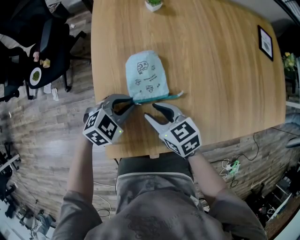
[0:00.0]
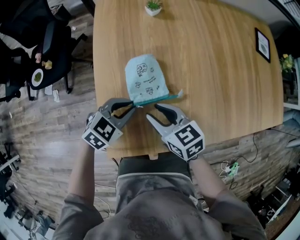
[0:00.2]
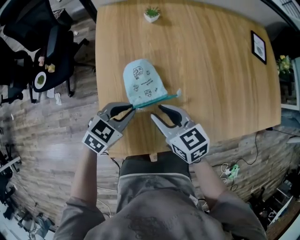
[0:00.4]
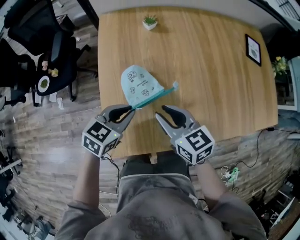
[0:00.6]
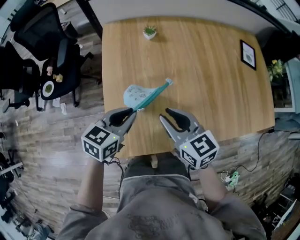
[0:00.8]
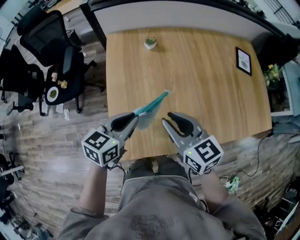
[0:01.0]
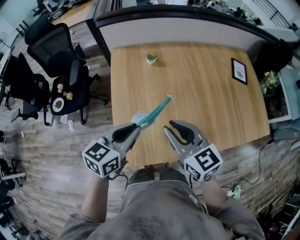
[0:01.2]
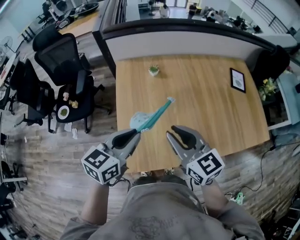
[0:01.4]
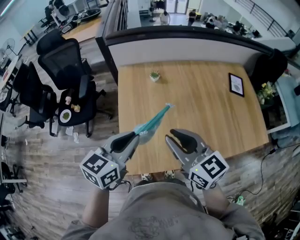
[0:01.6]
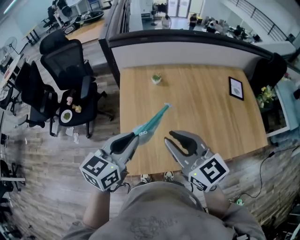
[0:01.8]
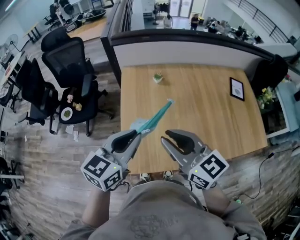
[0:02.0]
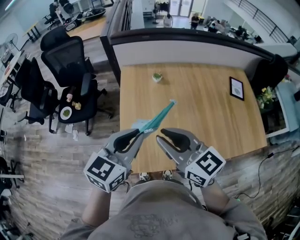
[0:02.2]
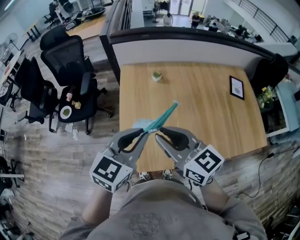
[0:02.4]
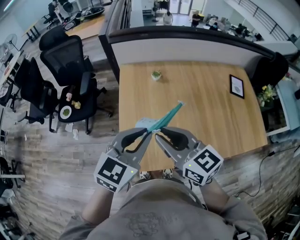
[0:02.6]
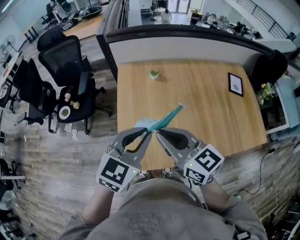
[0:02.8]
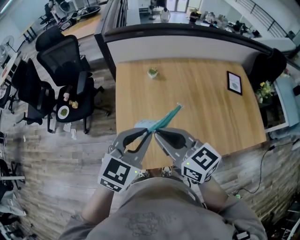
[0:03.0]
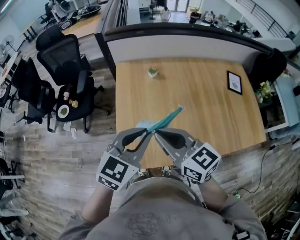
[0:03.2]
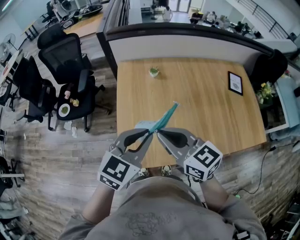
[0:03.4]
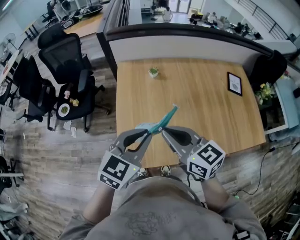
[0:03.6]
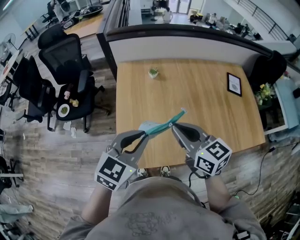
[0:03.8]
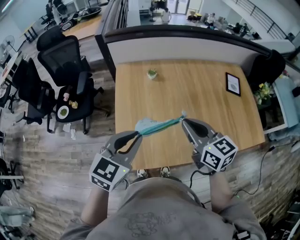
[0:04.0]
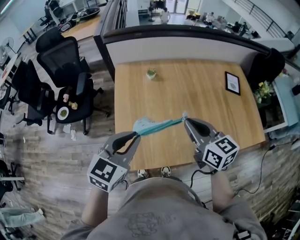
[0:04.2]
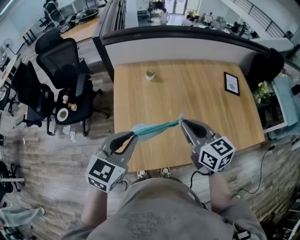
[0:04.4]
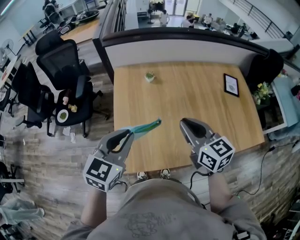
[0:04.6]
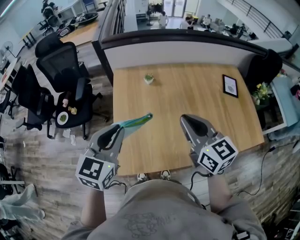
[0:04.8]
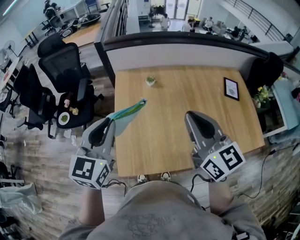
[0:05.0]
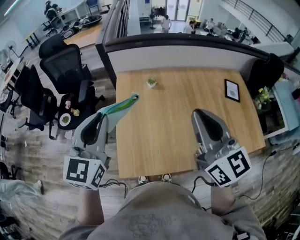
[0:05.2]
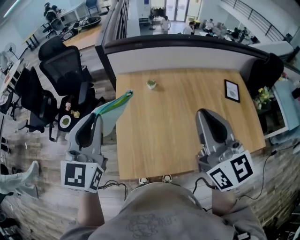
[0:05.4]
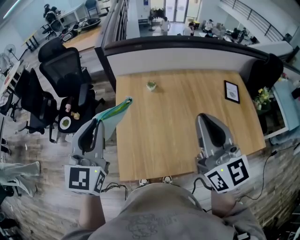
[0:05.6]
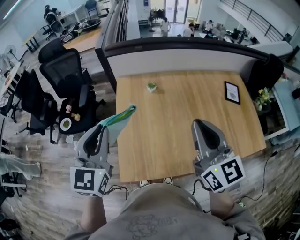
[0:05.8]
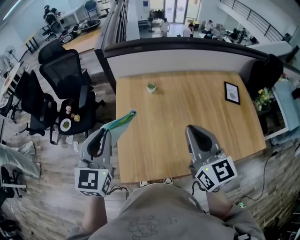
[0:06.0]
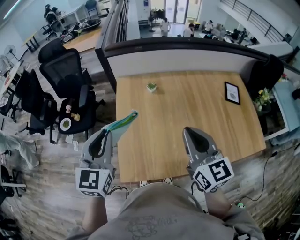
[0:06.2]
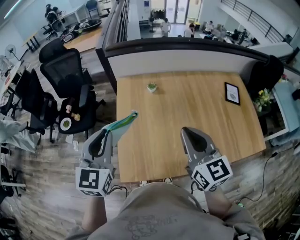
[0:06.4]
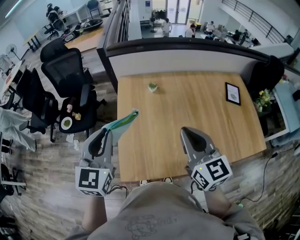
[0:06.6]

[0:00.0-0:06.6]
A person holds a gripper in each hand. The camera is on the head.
0:00.0 to 0:01.6: Both grippers travel together upward, roughly 35 cm. The left gripper angles its fingers upward, by approximately 30 degrees. The right gripper changes its angle by roughly 30 degrees.
0:01.6 to 0:03.2: The left gripper travels to the right by about 5 cm, and rotates approximately 20 degrees.
0:03.2 to 0:05.0: The right gripper travels to the right and upward by approximately 15 cm, and changes its angle by about 20 degrees; the left gripper goes about 10 cm to the left and upward, and turns by about 20 degrees.
0:05.0 to 0:06.6: The right gripper shifts by about 5 cm.

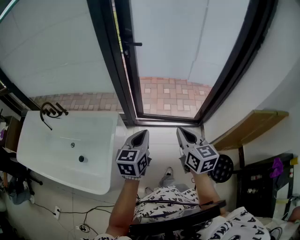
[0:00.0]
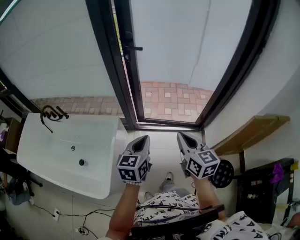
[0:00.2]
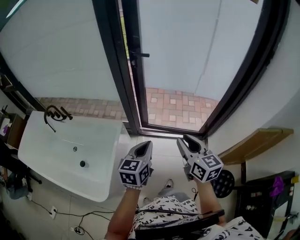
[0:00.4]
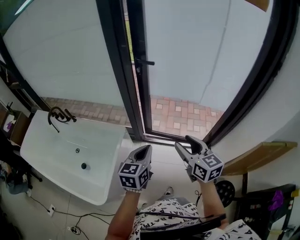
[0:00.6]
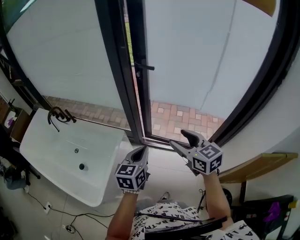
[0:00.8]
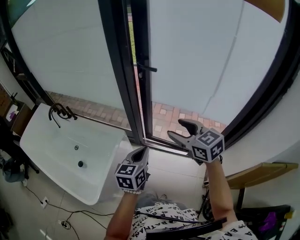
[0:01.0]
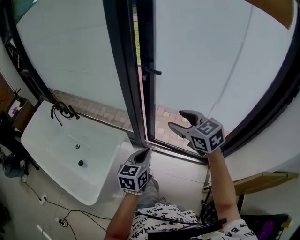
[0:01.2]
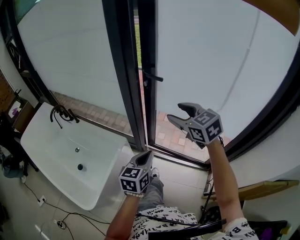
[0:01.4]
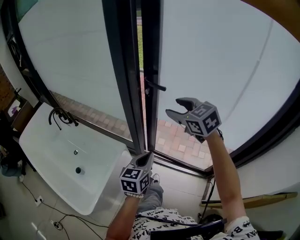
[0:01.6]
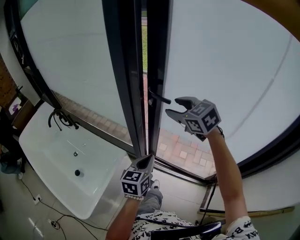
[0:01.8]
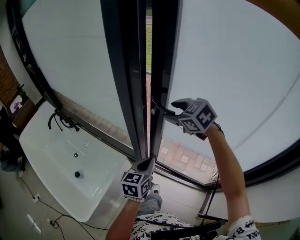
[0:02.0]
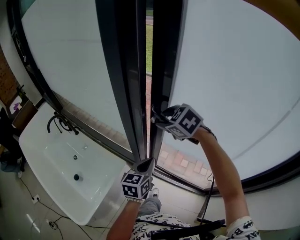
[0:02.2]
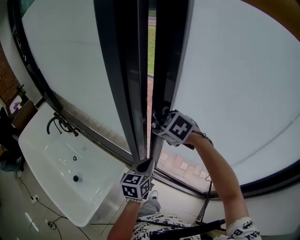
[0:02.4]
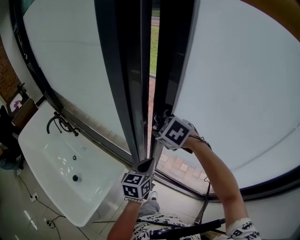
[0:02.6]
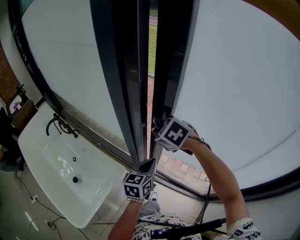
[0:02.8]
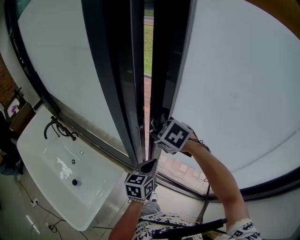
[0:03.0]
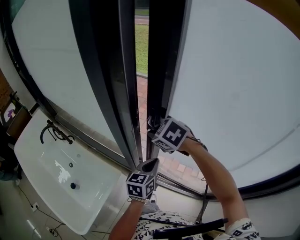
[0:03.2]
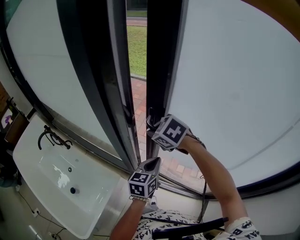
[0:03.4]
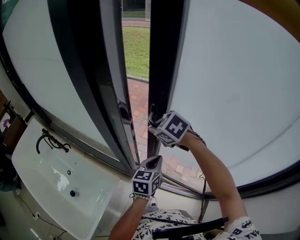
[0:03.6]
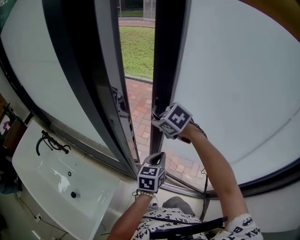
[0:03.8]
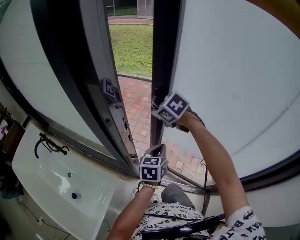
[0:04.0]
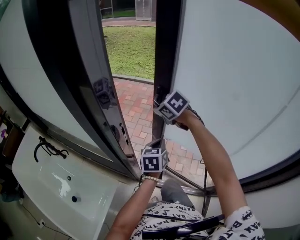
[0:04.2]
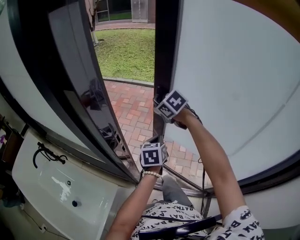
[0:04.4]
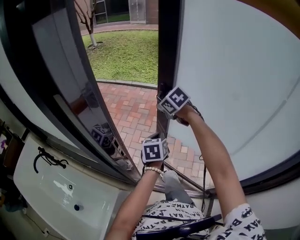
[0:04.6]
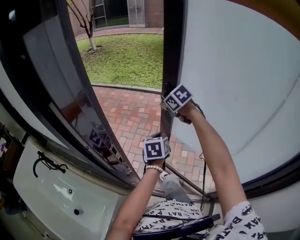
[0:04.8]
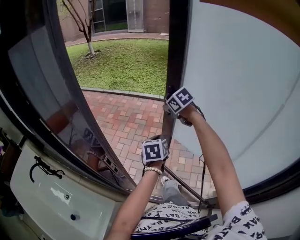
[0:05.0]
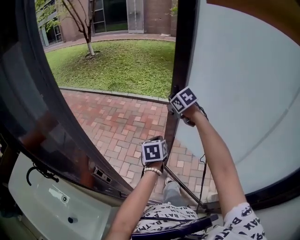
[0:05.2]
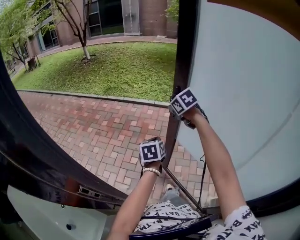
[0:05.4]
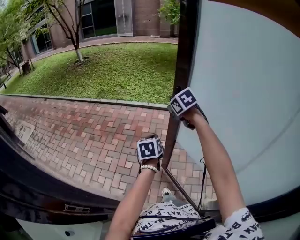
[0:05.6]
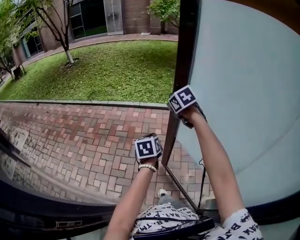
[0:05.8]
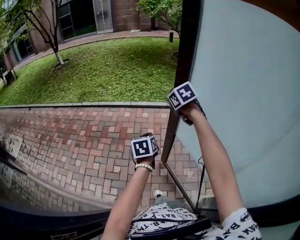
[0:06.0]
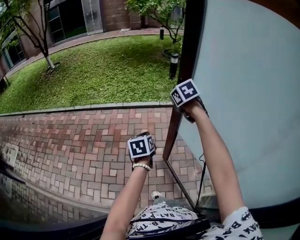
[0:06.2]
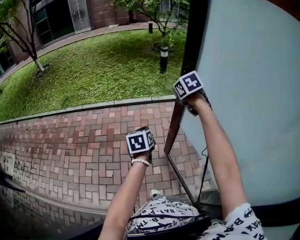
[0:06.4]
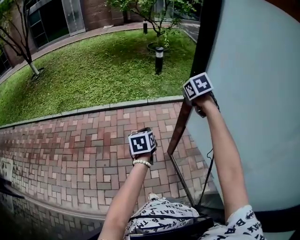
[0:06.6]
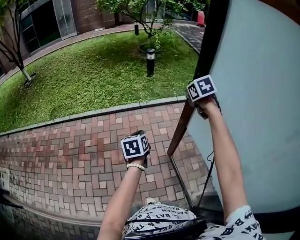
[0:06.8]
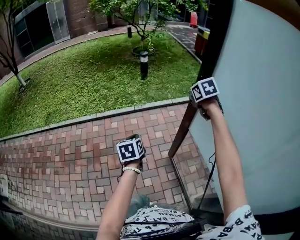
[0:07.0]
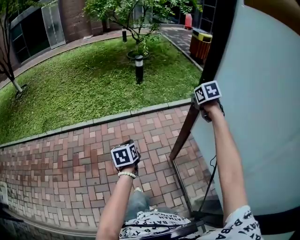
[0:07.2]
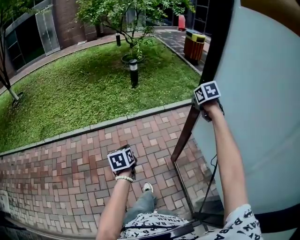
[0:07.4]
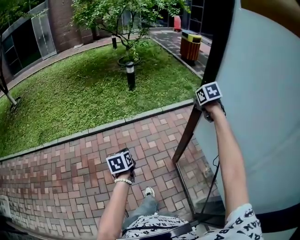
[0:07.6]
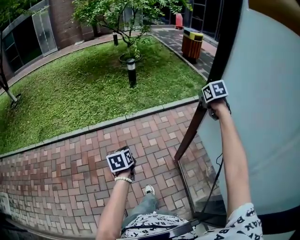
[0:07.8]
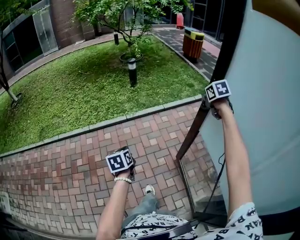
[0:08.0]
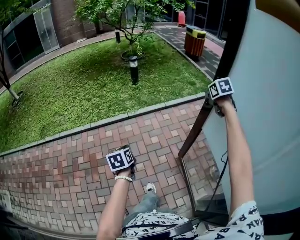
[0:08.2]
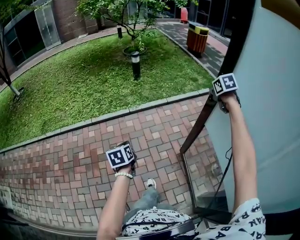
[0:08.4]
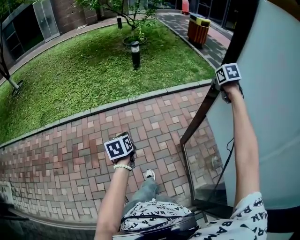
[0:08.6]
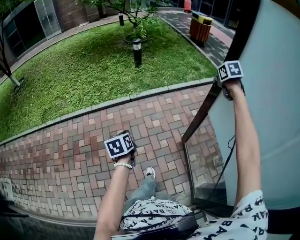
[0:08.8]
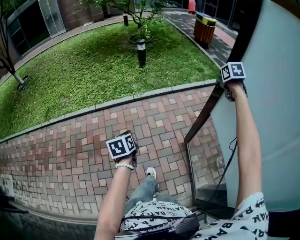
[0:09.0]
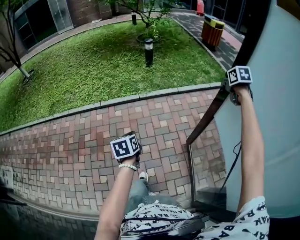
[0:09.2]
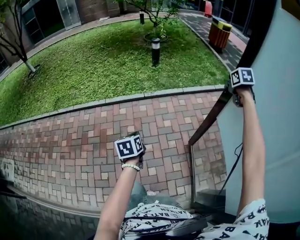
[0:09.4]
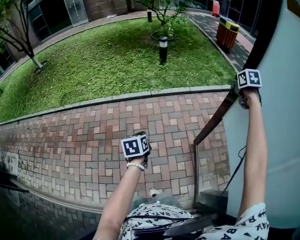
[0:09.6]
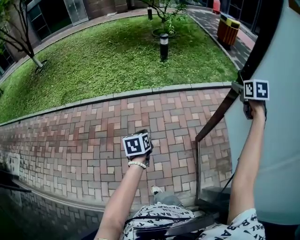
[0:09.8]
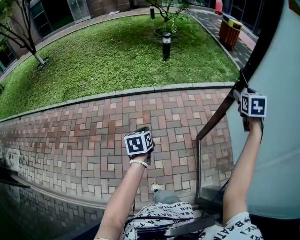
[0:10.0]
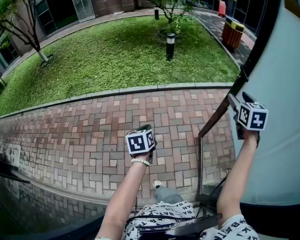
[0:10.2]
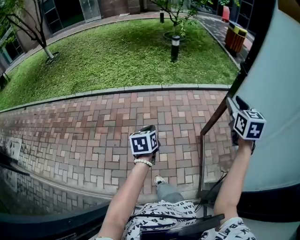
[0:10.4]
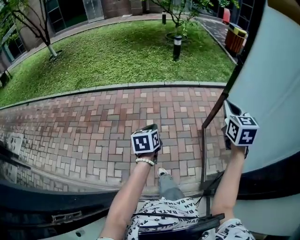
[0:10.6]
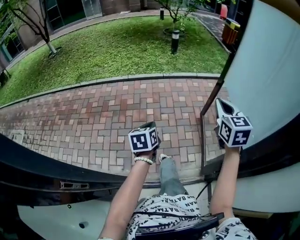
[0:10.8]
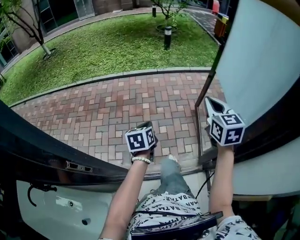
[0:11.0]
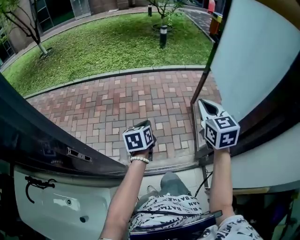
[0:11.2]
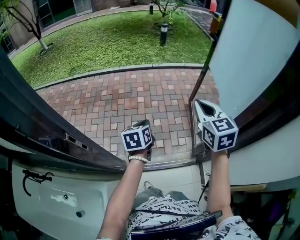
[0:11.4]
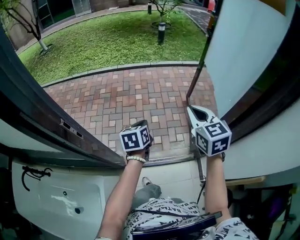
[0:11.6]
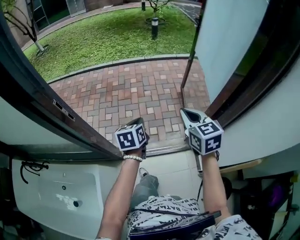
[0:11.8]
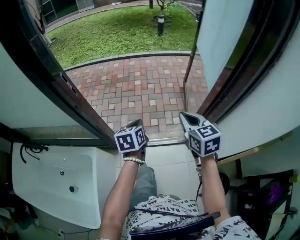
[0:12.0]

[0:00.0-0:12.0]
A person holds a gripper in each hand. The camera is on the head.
0:00.0 to 0:01.6: The right gripper goes approximately 35 cm forward, turns by approximately 50 degrees, and opens its fingers; the left gripper is displaced forward by roughly 20 cm.
0:01.6 to 0:03.0: The left gripper travels forward by roughly 20 cm, while the right gripper moves forward and to the left, roughly 15 cm, changes its angle by approximately 30 degrees, and closes its fingers.
0:03.0 to 0:04.4: Both grippers travel together forward and to the right, roughly 20 cm.
0:04.4 to 0:06.0: The left gripper moves forward and to the right, about 40 cm; the right gripper heads to the right and forward, covering roughly 50 cm, and changes its angle by about 30 degrees.
0:06.0 to 0:07.6: The left gripper changes place by roughly 25 cm. Meanwhile the right gripper moves about 50 cm, and changes its angle by roughly 40 degrees.
0:07.6 to 0:09.0: The right gripper shifts some 10 cm to the right.
0:09.0 to 0:10.4: The left gripper moves backward, approximately 20 cm, while the right gripper moves backward and to the left, about 35 cm, rotates approximately 30 degrees, and opens.
0:10.4 to 0:12.0: Both grippers are carried backward, roughly 60 cm. The right gripper rotates some 20 degrees, and closes.

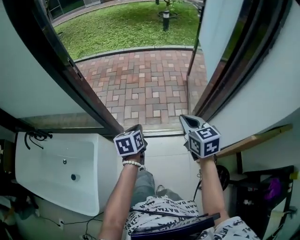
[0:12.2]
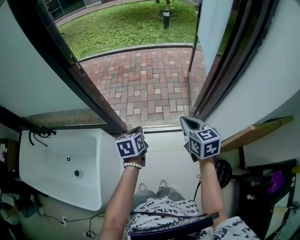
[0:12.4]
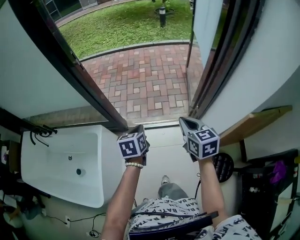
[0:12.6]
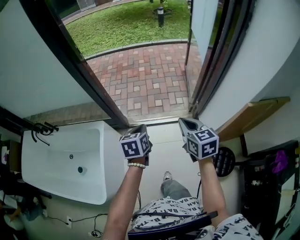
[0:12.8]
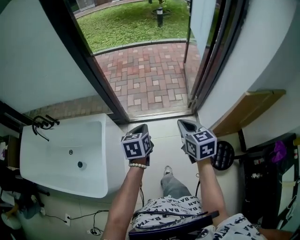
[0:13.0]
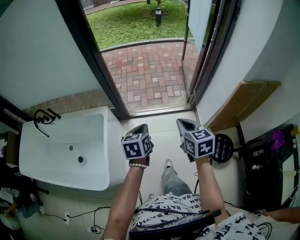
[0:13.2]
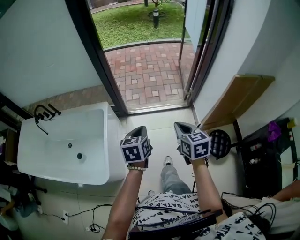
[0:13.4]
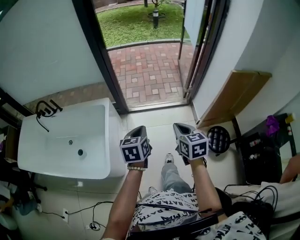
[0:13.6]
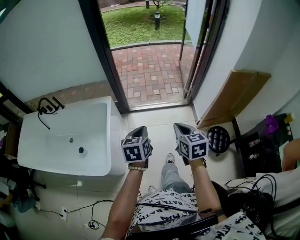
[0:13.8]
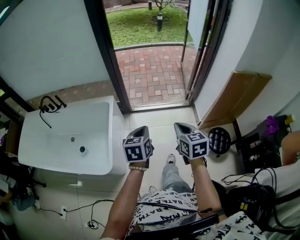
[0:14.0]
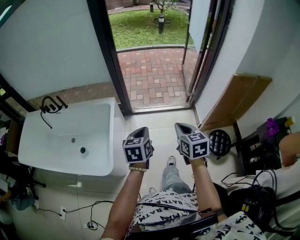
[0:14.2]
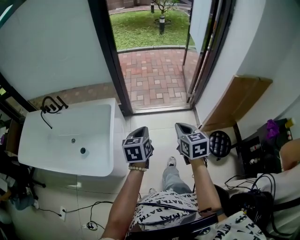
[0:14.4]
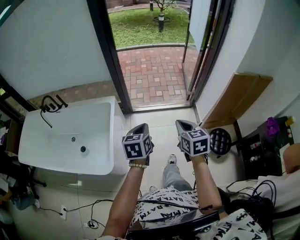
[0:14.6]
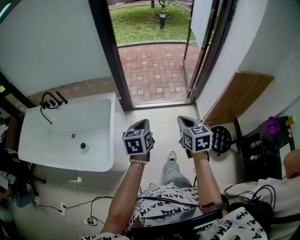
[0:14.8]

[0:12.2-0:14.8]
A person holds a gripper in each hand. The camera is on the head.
0:12.2 to 0:13.4: Both grippers move backward, about 35 cm.
0:13.4 to 0:14.8: Both grippers travel together backward, roughly 5 cm.

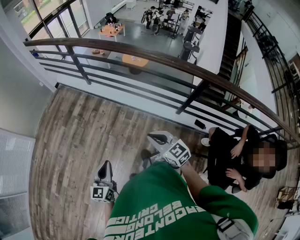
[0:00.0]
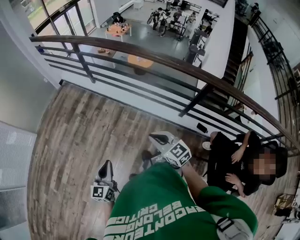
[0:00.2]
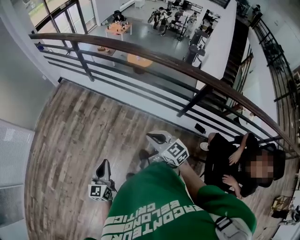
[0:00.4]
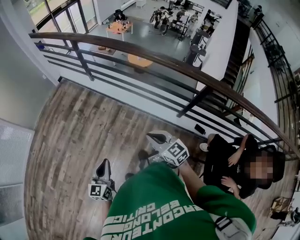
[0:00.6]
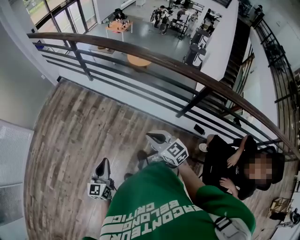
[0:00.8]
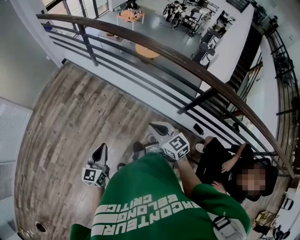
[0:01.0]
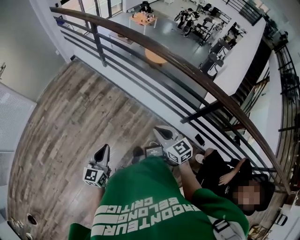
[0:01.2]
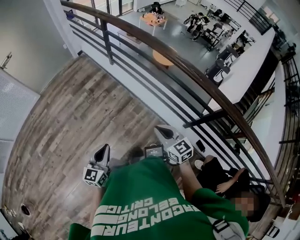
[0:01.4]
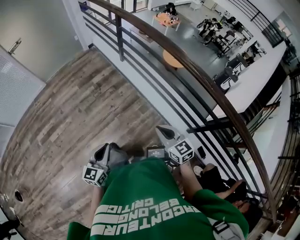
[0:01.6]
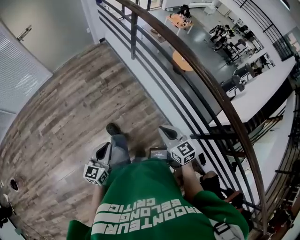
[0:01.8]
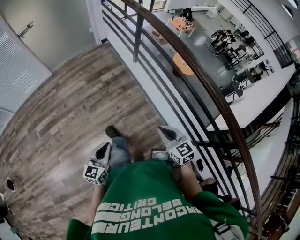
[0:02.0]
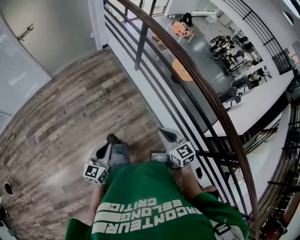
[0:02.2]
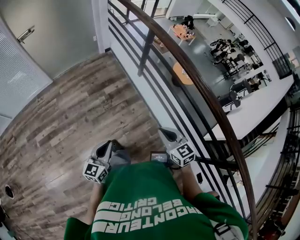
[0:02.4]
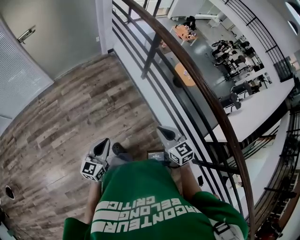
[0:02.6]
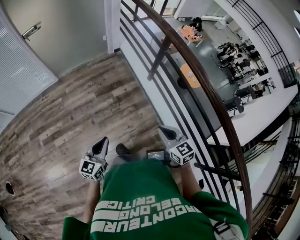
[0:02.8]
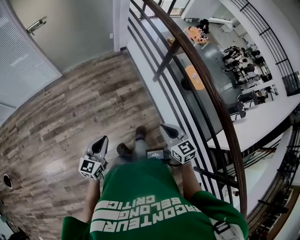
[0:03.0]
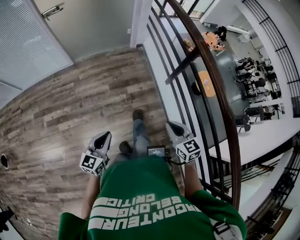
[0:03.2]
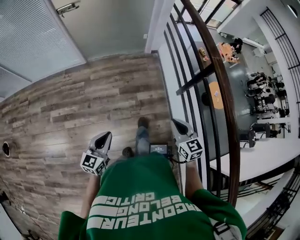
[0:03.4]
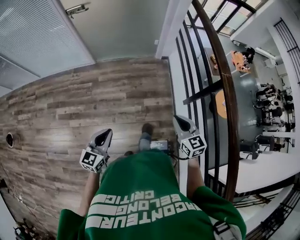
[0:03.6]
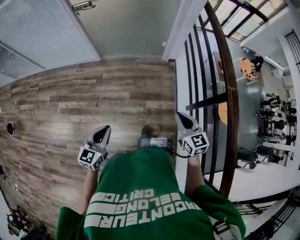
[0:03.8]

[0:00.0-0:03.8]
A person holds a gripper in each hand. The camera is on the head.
0:00.0 to 0:01.2: The two grippers go roughly 5 cm to the right.
0:01.2 to 0:02.6: The two grippers go approximately 35 cm forward and to the left.
0:02.6 to 0:03.8: The left gripper goes roughly 25 cm forward and to the left, and swivels about 30 degrees; the right gripper travels forward by about 40 cm.
